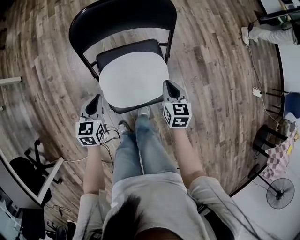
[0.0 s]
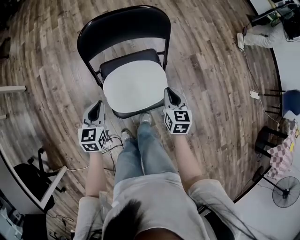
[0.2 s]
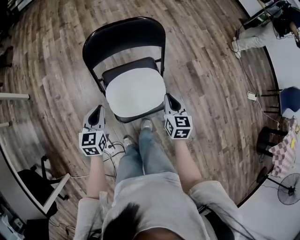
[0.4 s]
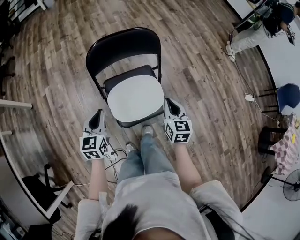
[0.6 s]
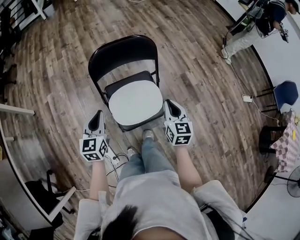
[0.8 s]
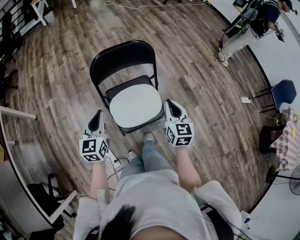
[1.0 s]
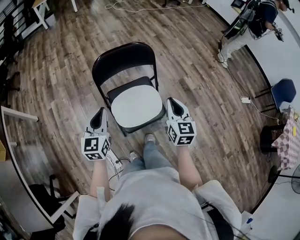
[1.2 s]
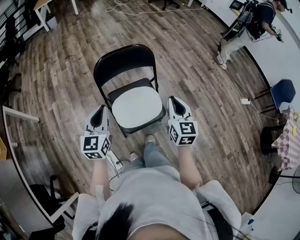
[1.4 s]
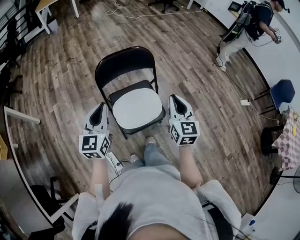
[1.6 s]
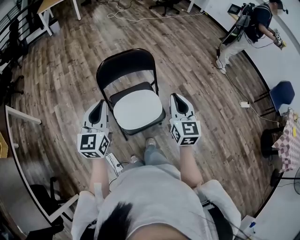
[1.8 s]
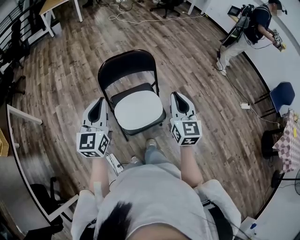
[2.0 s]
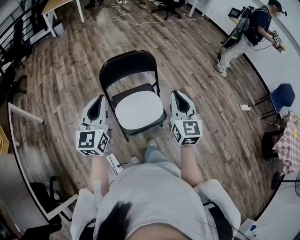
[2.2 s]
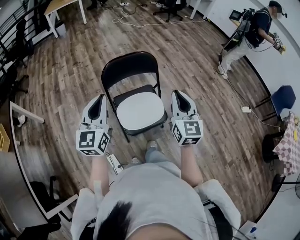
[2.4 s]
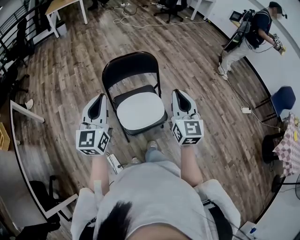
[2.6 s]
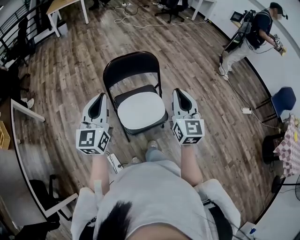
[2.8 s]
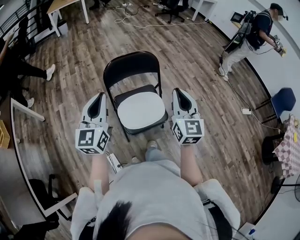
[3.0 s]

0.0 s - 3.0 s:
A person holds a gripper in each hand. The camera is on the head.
0.0 s - 1.6 s: Both grippers travel together upward, about 35 cm. The left gripper tips its fingers upward by some 30 degrees, while the right gripper swivels about 30 degrees.
1.6 s - 3.0 s: The two grippers go about 10 cm upward.

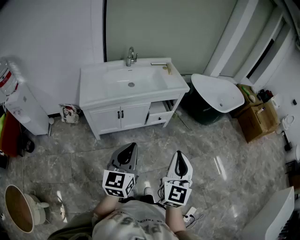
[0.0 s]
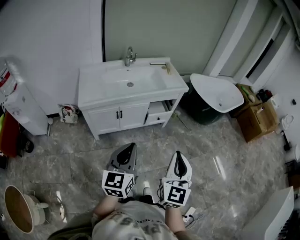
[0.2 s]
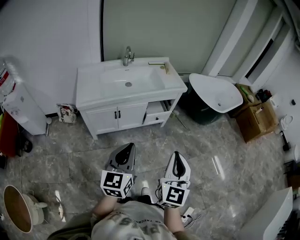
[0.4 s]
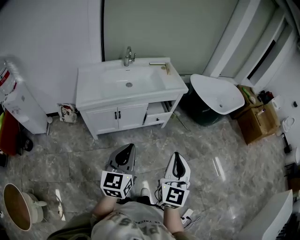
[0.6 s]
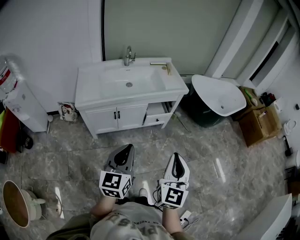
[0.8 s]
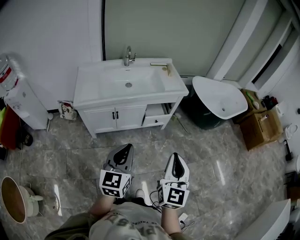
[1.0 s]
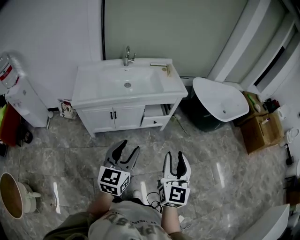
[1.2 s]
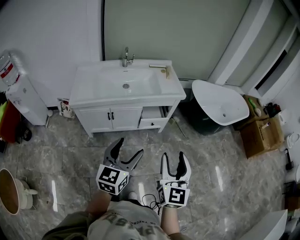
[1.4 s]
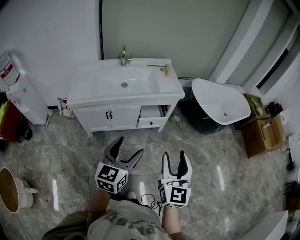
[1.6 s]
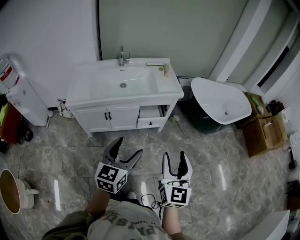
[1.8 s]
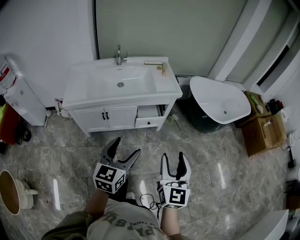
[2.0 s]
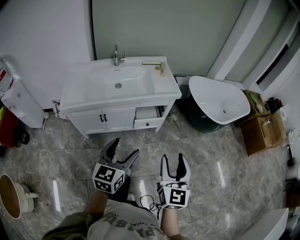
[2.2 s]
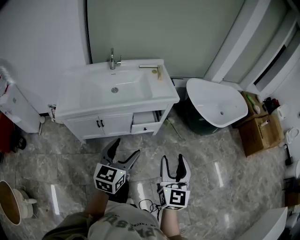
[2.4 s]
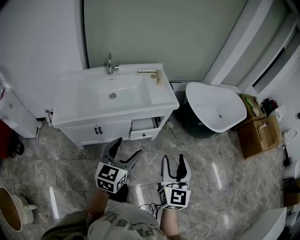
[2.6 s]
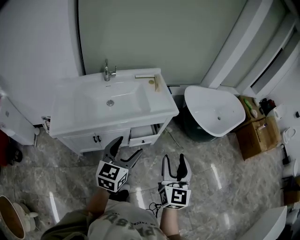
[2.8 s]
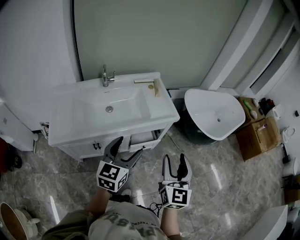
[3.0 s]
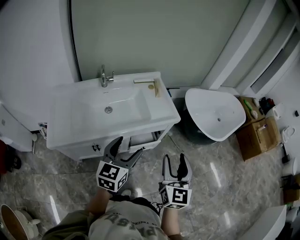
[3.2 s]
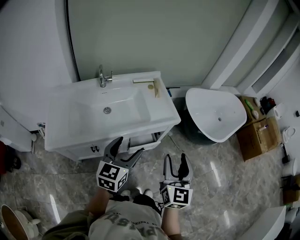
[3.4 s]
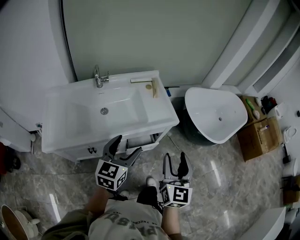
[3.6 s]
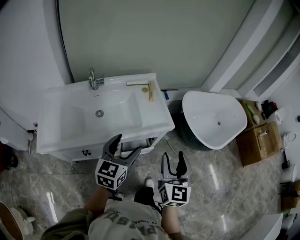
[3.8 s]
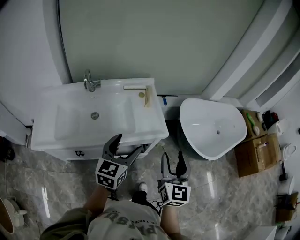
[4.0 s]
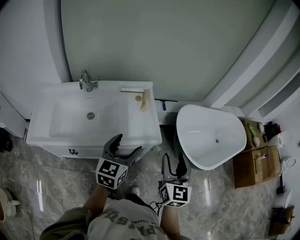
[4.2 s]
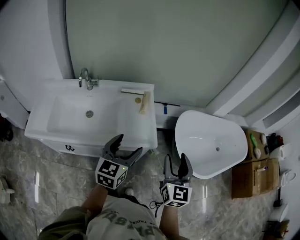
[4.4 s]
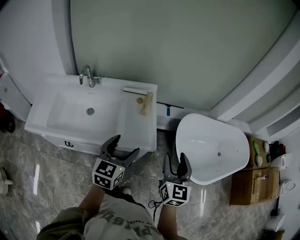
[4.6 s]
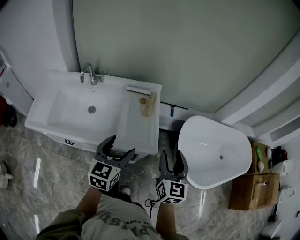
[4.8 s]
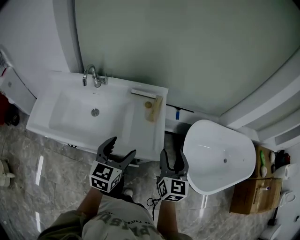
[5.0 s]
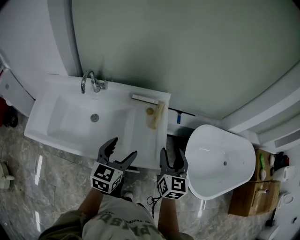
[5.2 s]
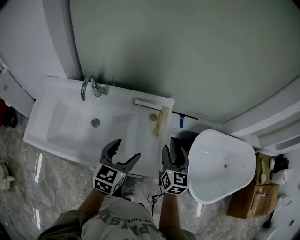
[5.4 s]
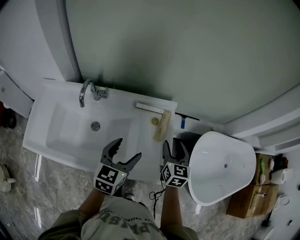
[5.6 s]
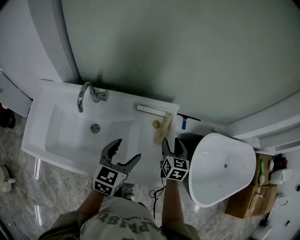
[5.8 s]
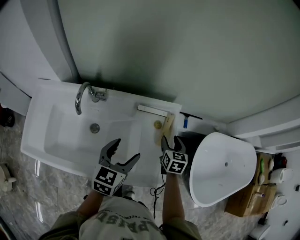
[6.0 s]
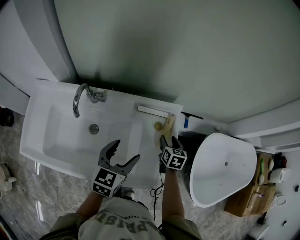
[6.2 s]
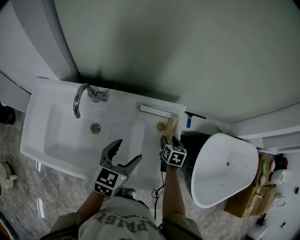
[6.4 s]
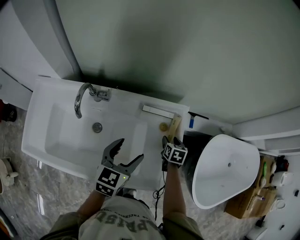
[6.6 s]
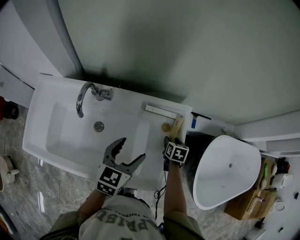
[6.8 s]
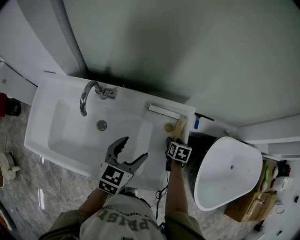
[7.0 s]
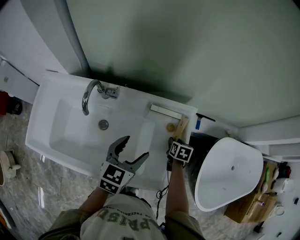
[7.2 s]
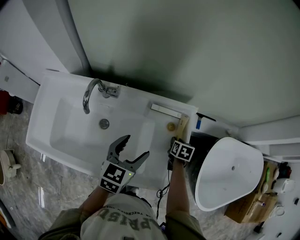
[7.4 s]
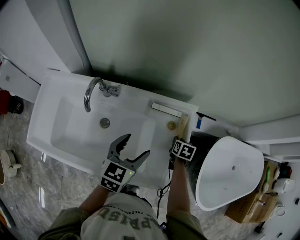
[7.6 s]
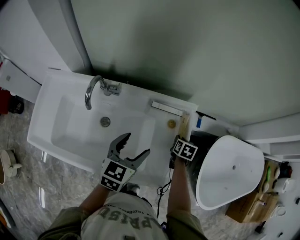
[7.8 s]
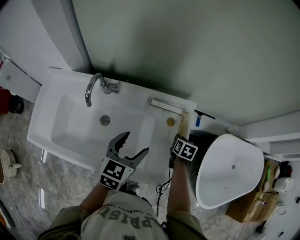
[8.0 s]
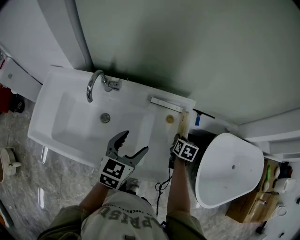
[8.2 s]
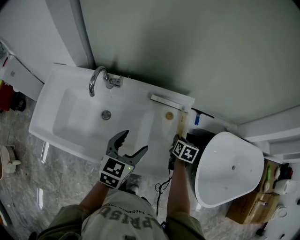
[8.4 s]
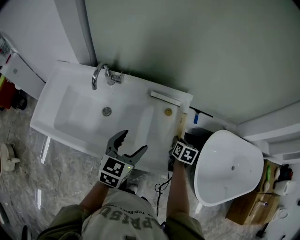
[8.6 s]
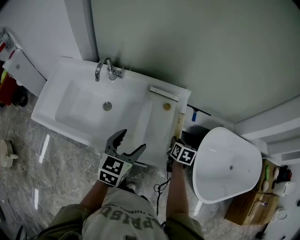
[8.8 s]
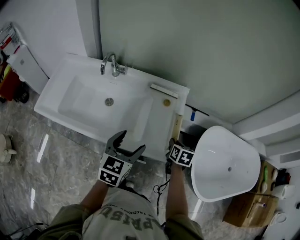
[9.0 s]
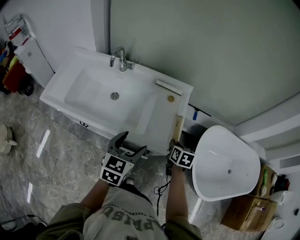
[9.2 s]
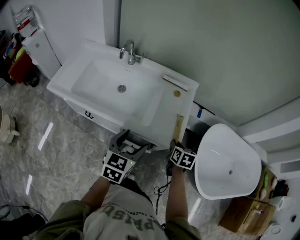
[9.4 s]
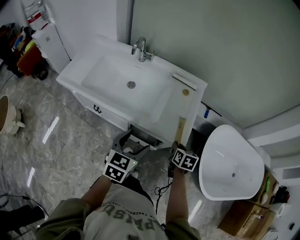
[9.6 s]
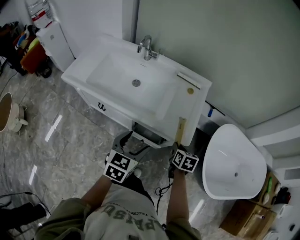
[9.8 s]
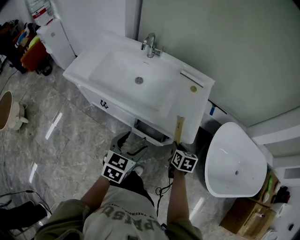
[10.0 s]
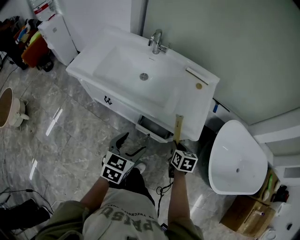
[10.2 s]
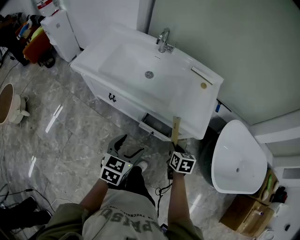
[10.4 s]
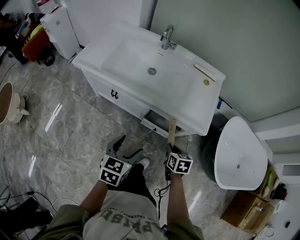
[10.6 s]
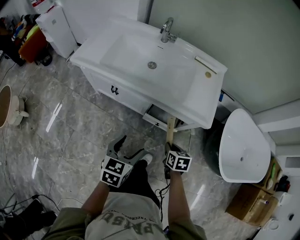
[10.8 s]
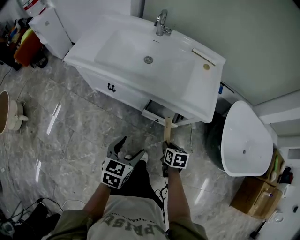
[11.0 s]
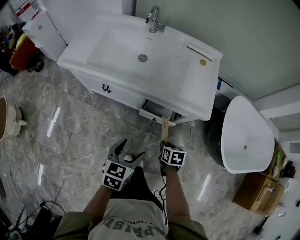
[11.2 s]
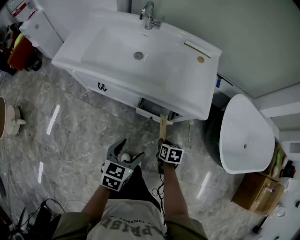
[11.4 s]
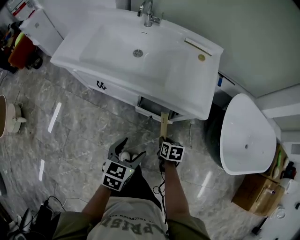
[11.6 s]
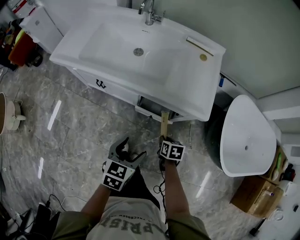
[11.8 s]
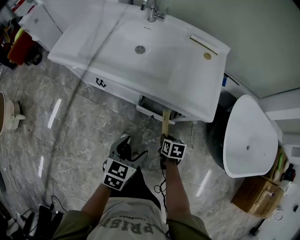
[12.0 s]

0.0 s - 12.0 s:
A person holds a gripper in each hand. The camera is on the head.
0.0 s - 1.6 s: The grippers both shift to the right and forward by about 20 cm. The right gripper opens up. Meanwhile the left gripper opens.
1.6 s - 3.0 s: The two grippers go about 25 cm forward.
3.0 s - 4.4 s: The two grippers go approximately 30 cm forward and to the right.
4.4 s - 6.0 s: The right gripper shifts some 50 cm forward, downward and to the left, and tilts its fingers about 30 degrees downward; the left gripper moves forward and to the left, about 25 cm.
6.0 s - 7.6 s: The right gripper goes about 10 cm downward, changes its angle by approximately 30 degrees, and closes up.
7.6 s - 9.0 s: The left gripper moves backward, about 15 cm. Meanwhile the right gripper moves backward and upward, roughly 20 cm.
9.0 s - 10.4 s: Both grippers move backward and to the left, roughly 25 cm.
10.4 s - 12.0 s: The left gripper goes some 10 cm downward, while the right gripper travels downward by approximately 15 cm.

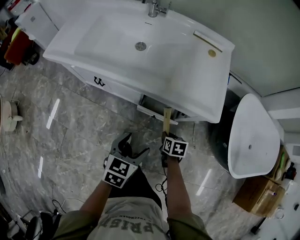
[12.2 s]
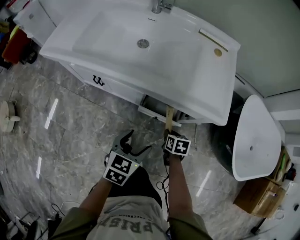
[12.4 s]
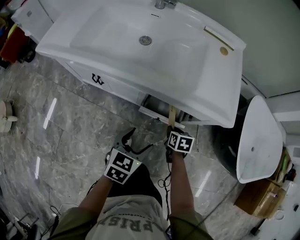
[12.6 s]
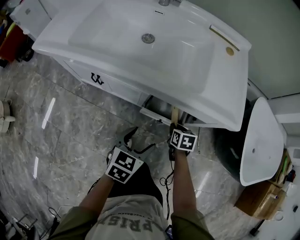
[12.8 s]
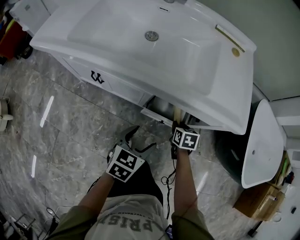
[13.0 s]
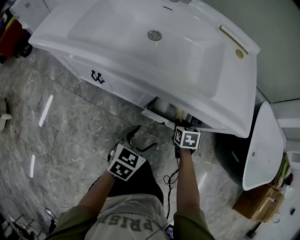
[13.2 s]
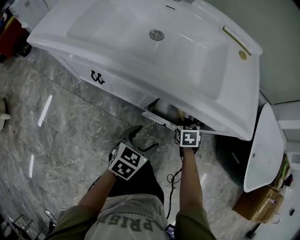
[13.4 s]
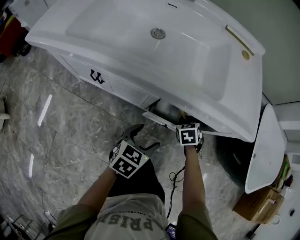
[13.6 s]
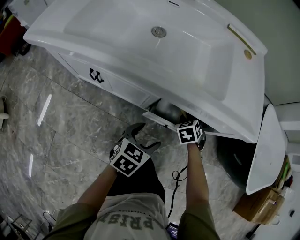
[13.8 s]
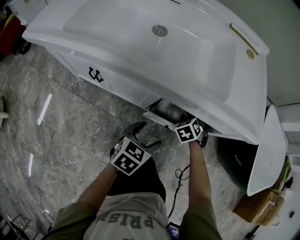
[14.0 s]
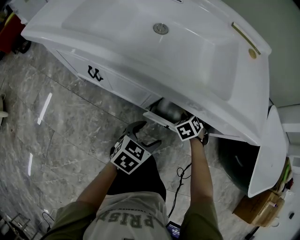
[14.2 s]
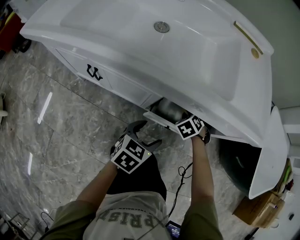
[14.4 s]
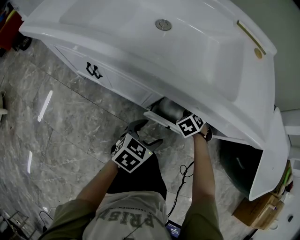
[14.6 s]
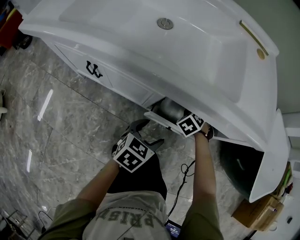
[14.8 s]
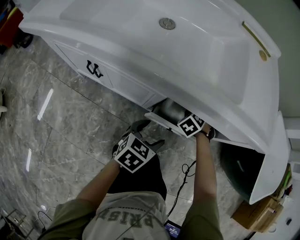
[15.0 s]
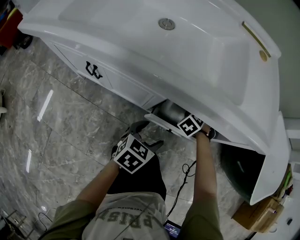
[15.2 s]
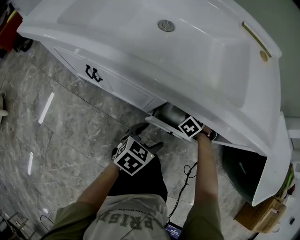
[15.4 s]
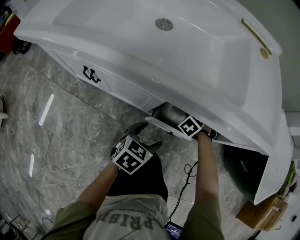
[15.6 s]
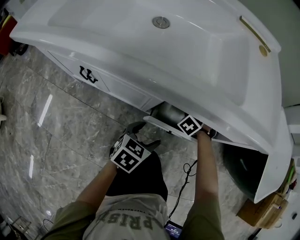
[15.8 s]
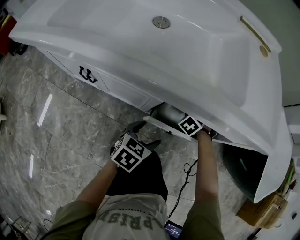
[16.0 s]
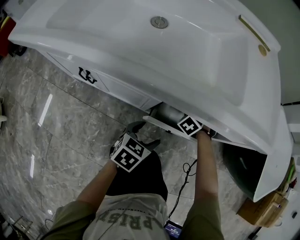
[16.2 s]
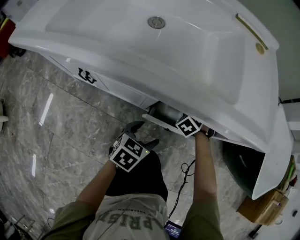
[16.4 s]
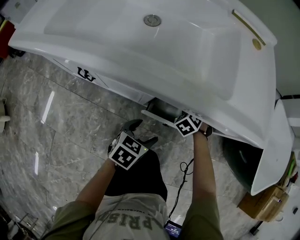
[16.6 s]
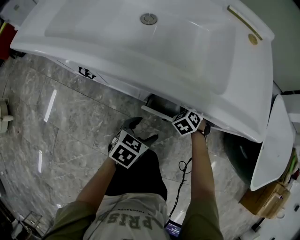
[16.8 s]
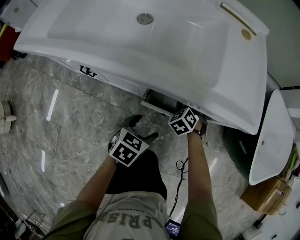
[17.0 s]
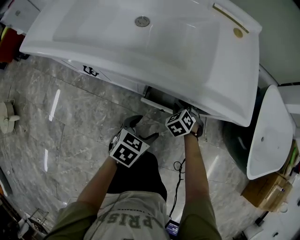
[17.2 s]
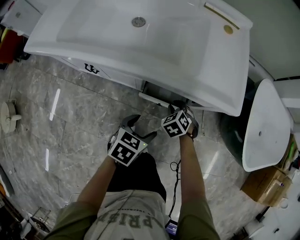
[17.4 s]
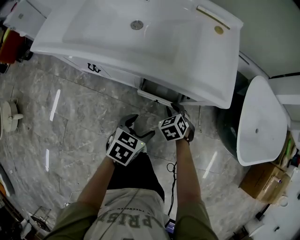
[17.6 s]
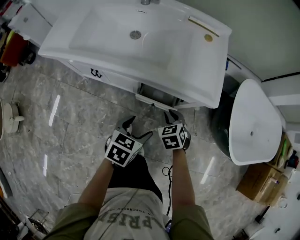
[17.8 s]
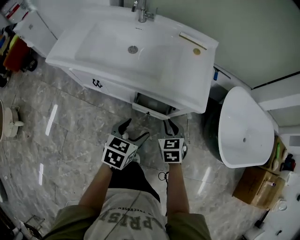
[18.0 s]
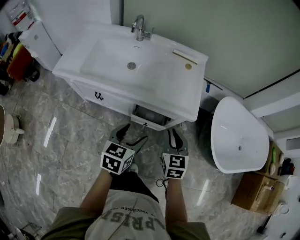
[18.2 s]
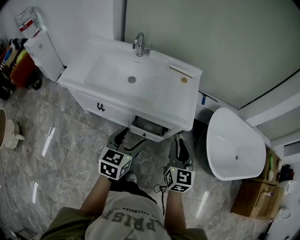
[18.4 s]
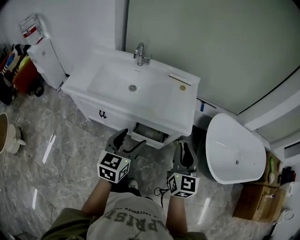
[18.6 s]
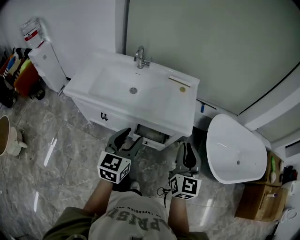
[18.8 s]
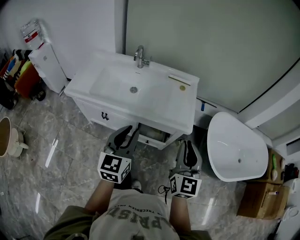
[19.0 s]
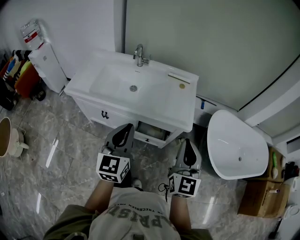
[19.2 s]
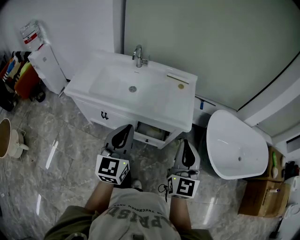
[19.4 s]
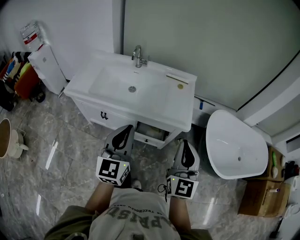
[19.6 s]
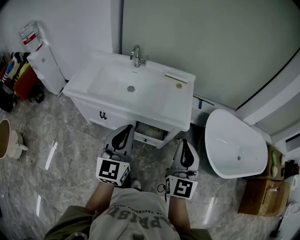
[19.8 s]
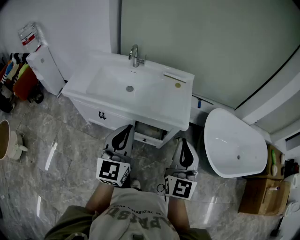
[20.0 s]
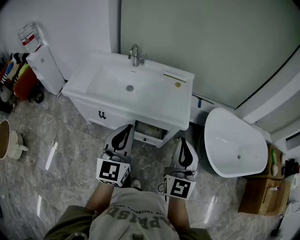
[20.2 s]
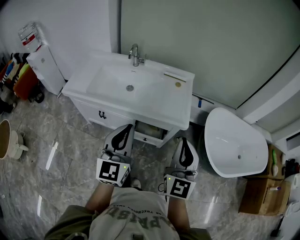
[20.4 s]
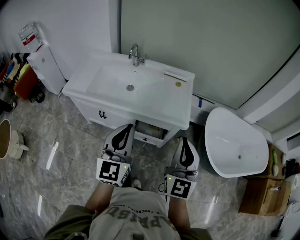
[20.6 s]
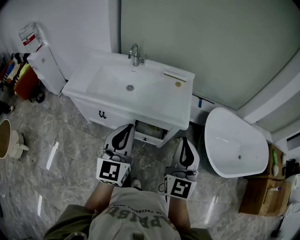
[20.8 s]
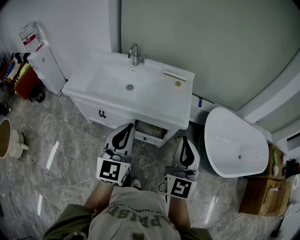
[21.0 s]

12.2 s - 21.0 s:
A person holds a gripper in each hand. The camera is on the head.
12.2 s - 13.6 s: The right gripper heads forward and downward, covering approximately 20 cm, and swivels roughly 40 degrees. Meanwhile the left gripper moves downward and forward, approximately 20 cm.
13.6 s - 15.2 s: The right gripper is displaced downward and forward by some 10 cm, and swivels approximately 40 degrees, while the left gripper shifts roughly 10 cm downward.
15.2 s - 16.6 s: The grippers make only small movements.
16.6 s - 18.0 s: The left gripper is displaced upward by approximately 30 cm; the right gripper is displaced upward and backward by about 40 cm, and turns by some 40 degrees.
18.0 s - 19.6 s: The grippers both shift upward by roughly 30 cm. The left gripper tips its fingers upward by some 40 degrees, and closes its fingers, while the right gripper tilts its fingers some 50 degrees upward.
19.6 s - 21.0 s: There are only small adjustments of the grippers.
